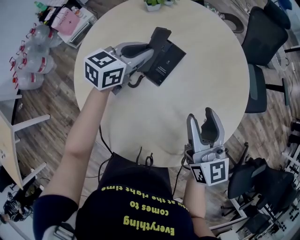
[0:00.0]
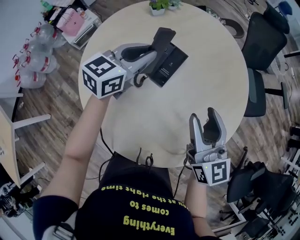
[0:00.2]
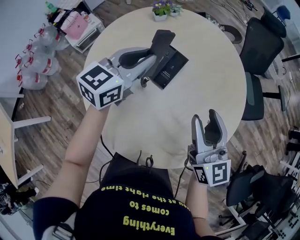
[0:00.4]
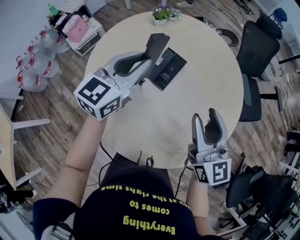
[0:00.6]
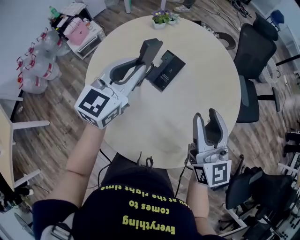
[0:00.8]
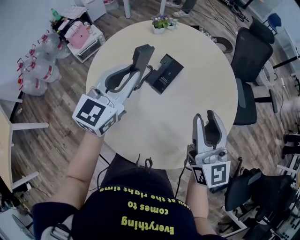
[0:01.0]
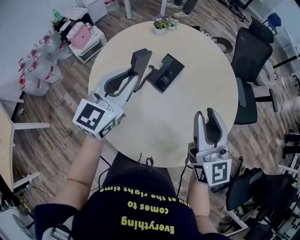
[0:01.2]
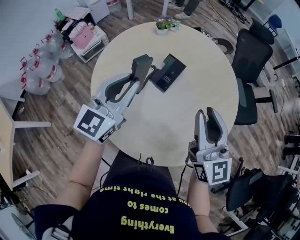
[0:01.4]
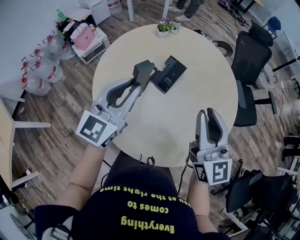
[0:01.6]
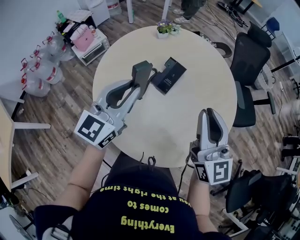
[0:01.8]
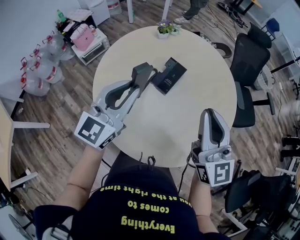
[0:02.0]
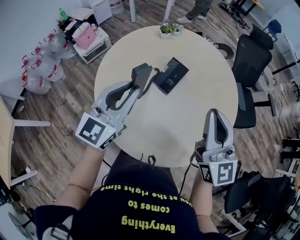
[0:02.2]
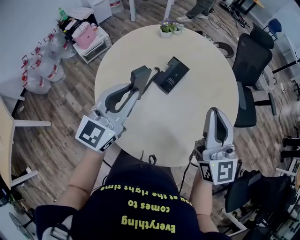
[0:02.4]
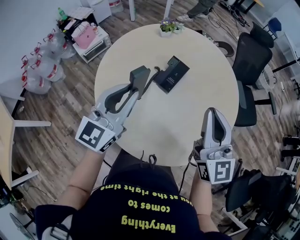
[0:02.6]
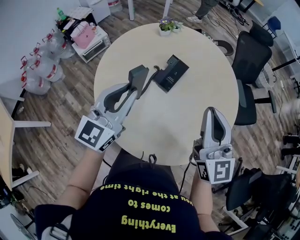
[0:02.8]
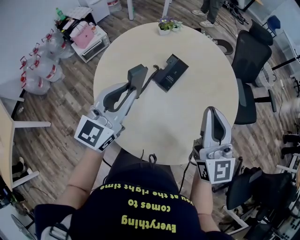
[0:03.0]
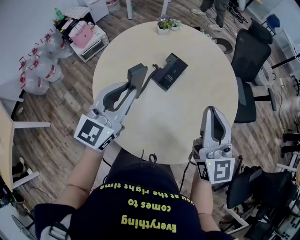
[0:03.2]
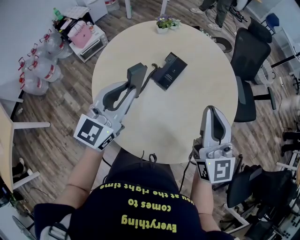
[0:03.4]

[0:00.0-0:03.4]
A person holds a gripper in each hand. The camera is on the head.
0:00.0 to 0:01.6: The right gripper travels upward and backward by about 15 cm, and closes. Meanwhile the left gripper shifts approximately 25 cm backward and upward, and rotates about 30 degrees.
0:01.6 to 0:03.4: The grippers move only a little.

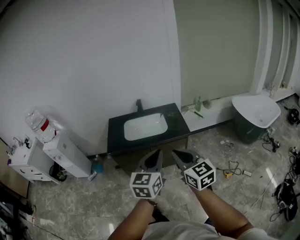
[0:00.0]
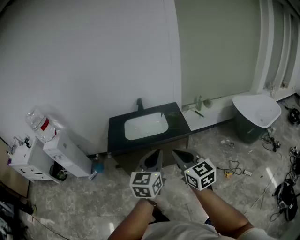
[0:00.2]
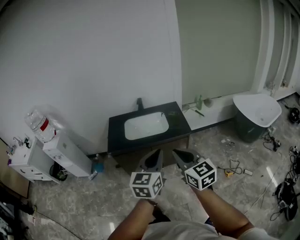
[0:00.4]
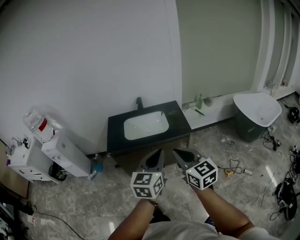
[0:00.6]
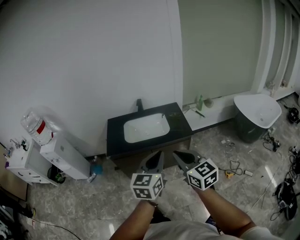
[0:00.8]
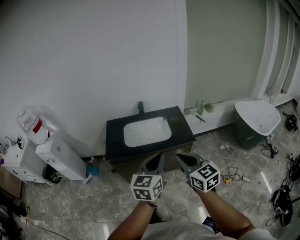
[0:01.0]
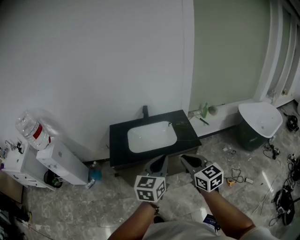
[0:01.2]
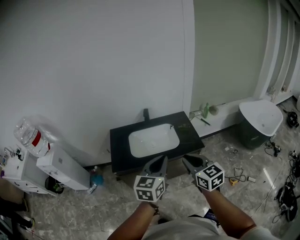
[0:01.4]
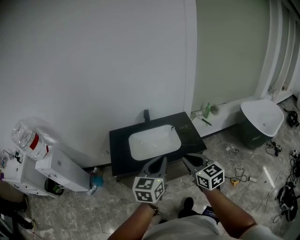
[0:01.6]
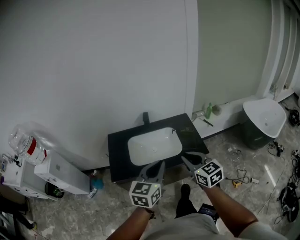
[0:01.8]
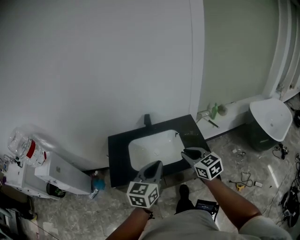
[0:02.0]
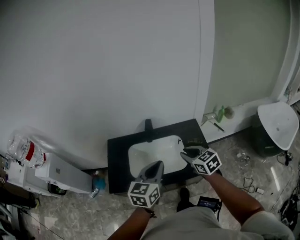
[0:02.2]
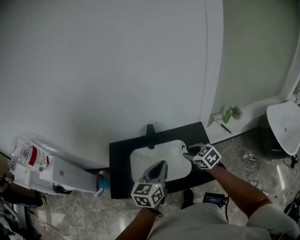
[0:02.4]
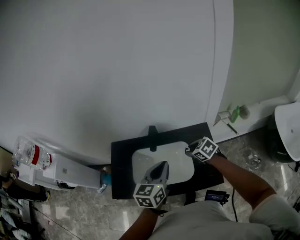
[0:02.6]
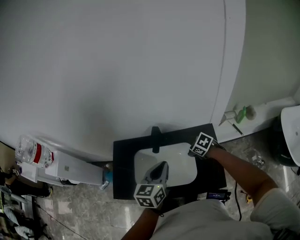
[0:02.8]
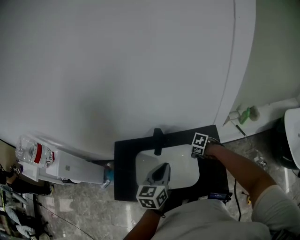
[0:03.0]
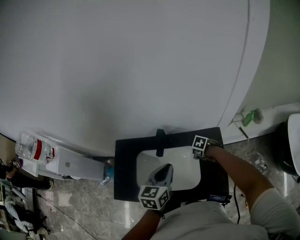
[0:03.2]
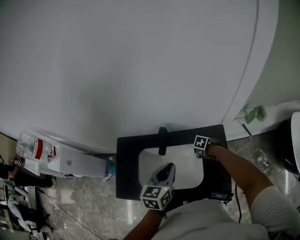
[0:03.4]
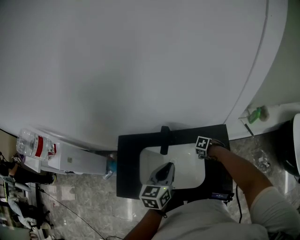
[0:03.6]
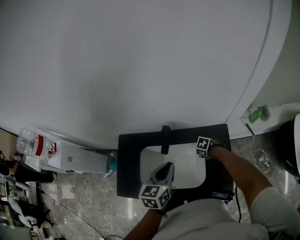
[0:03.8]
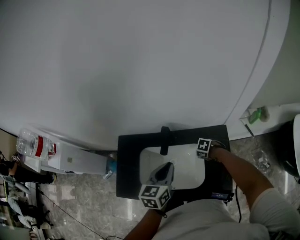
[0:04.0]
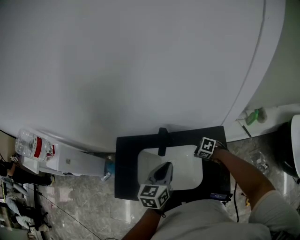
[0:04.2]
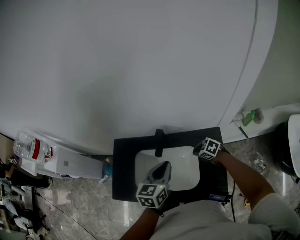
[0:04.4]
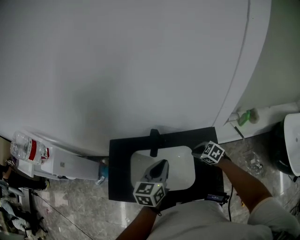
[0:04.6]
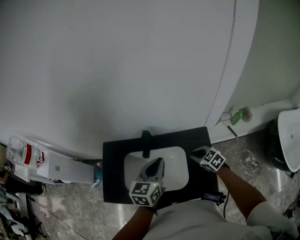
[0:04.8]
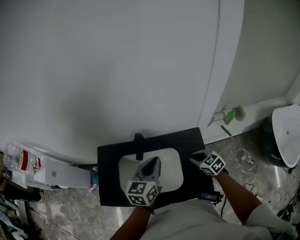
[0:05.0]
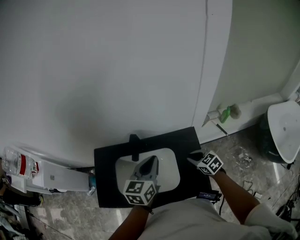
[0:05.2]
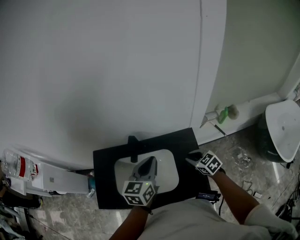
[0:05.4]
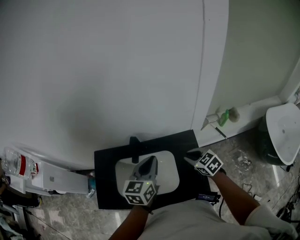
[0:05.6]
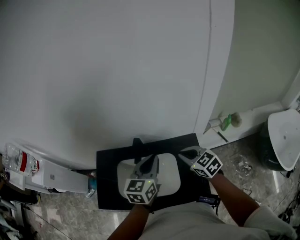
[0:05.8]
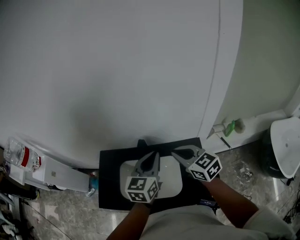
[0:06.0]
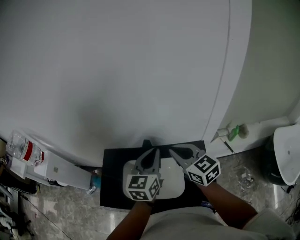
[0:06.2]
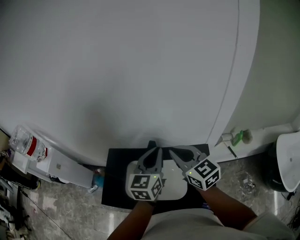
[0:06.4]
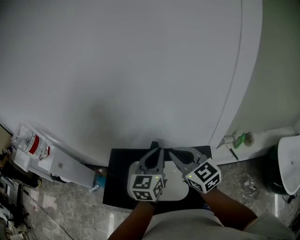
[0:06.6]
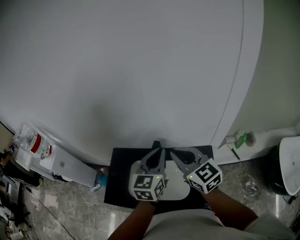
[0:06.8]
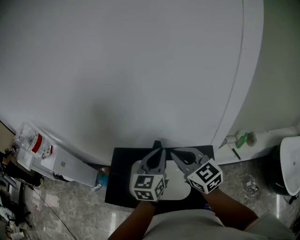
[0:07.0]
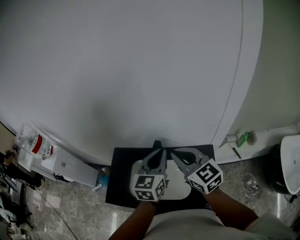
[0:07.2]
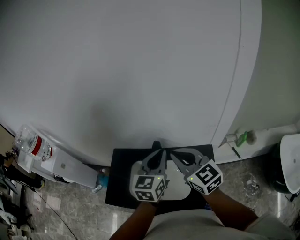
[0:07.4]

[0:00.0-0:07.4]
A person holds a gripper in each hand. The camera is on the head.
0:00.0 to 0:01.4: The right gripper heads forward, covering some 20 cm. The left gripper moves forward and to the left, roughly 25 cm.
0:01.4 to 0:03.0: Both grippers are carried about 50 cm. The right gripper points its fingers some 50 degrees further downward, and opens. The left gripper changes its angle by some 20 degrees.
0:03.0 to 0:04.4: The right gripper reaches about 10 cm downward, then returns, and closes up.
0:04.4 to 0:06.0: The right gripper shifts roughly 30 cm upward, and angles its fingers upward, by approximately 30 degrees, while the left gripper moves upward and to the right, some 10 cm.
0:06.0 to 0:07.4: The right gripper moves upward and to the left, some 10 cm. The left gripper shifts by roughly 5 cm.

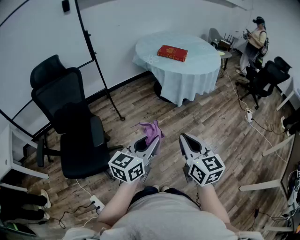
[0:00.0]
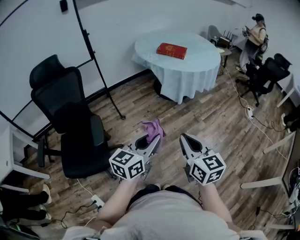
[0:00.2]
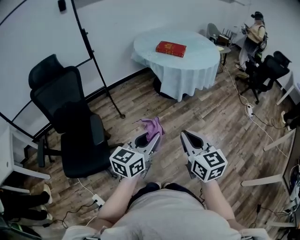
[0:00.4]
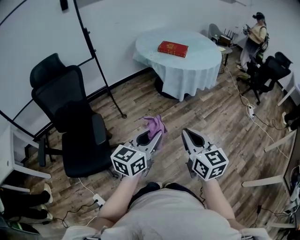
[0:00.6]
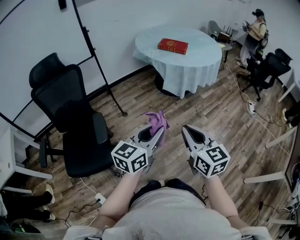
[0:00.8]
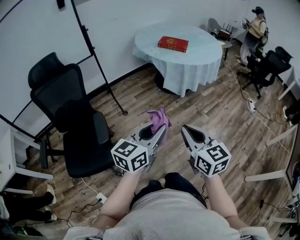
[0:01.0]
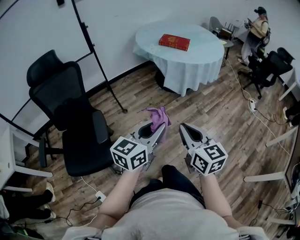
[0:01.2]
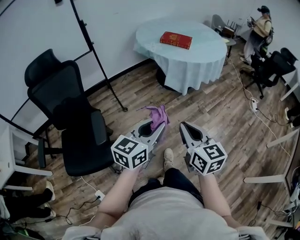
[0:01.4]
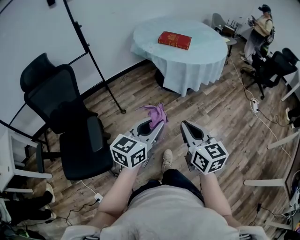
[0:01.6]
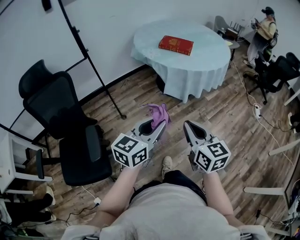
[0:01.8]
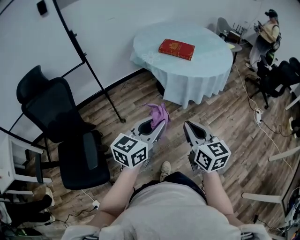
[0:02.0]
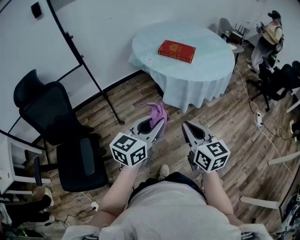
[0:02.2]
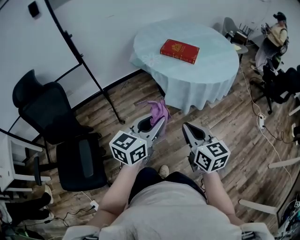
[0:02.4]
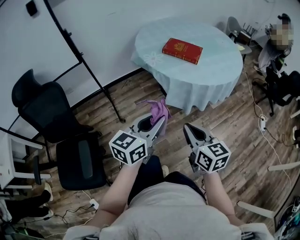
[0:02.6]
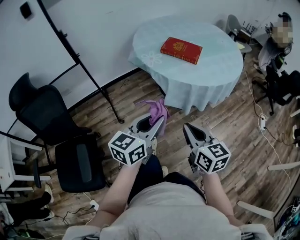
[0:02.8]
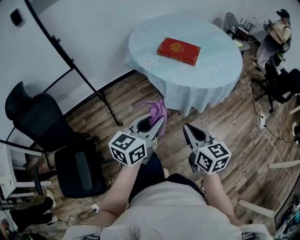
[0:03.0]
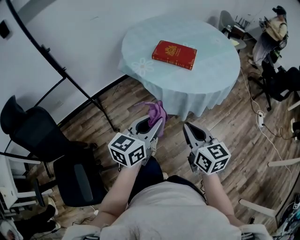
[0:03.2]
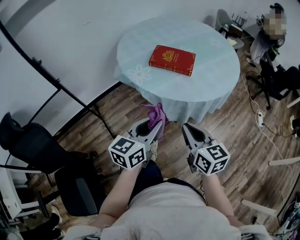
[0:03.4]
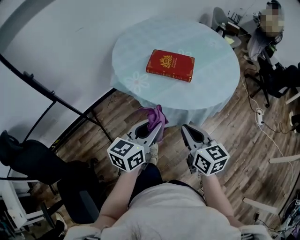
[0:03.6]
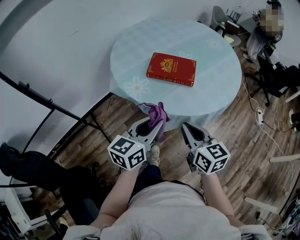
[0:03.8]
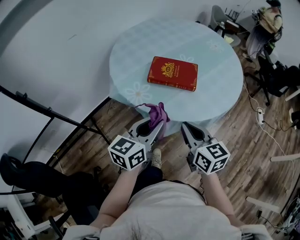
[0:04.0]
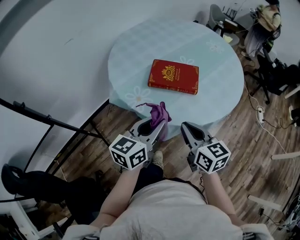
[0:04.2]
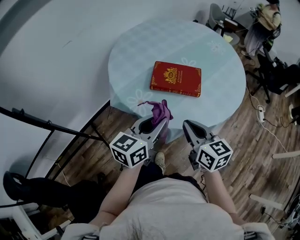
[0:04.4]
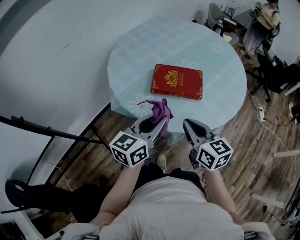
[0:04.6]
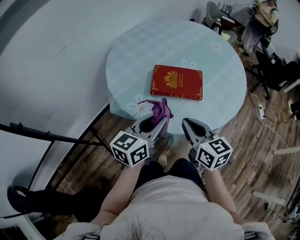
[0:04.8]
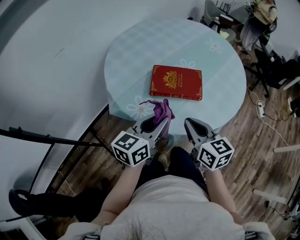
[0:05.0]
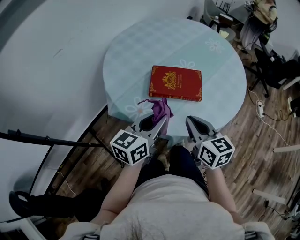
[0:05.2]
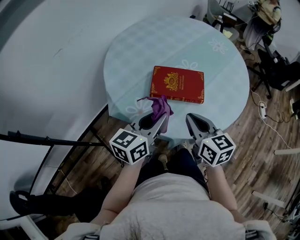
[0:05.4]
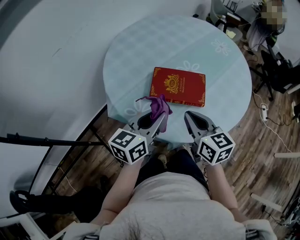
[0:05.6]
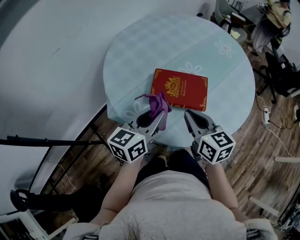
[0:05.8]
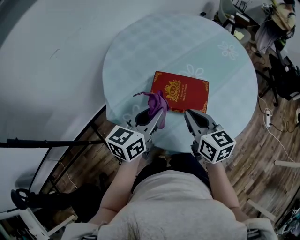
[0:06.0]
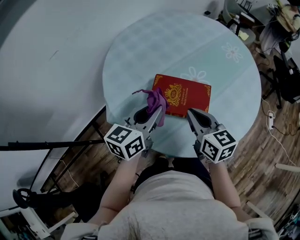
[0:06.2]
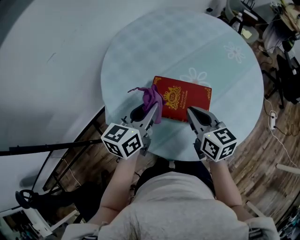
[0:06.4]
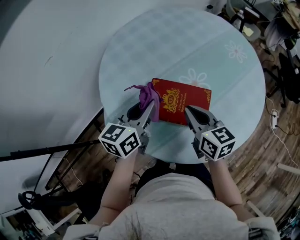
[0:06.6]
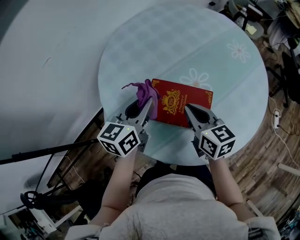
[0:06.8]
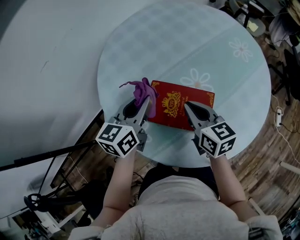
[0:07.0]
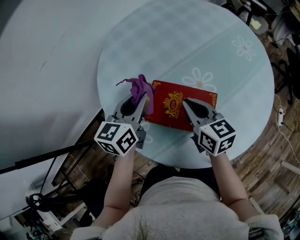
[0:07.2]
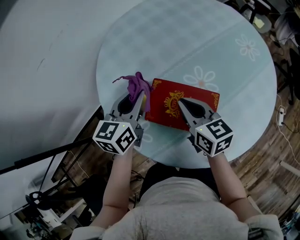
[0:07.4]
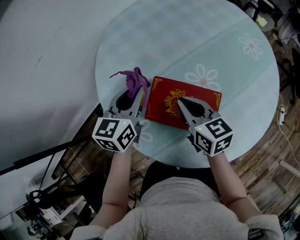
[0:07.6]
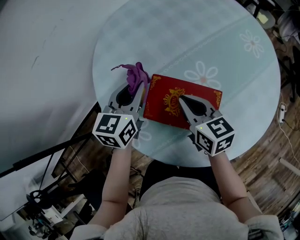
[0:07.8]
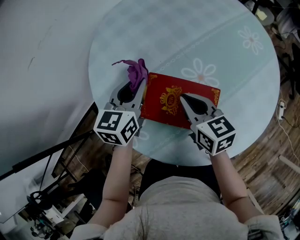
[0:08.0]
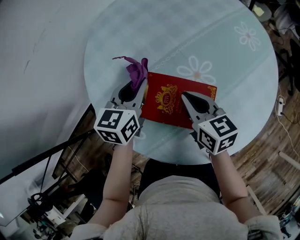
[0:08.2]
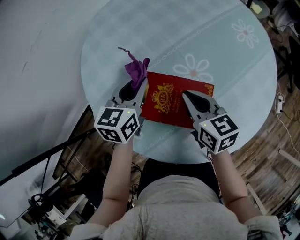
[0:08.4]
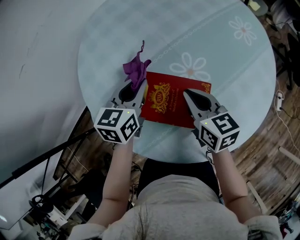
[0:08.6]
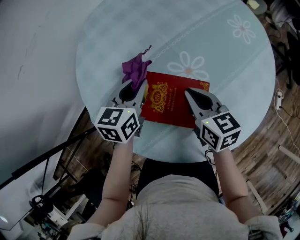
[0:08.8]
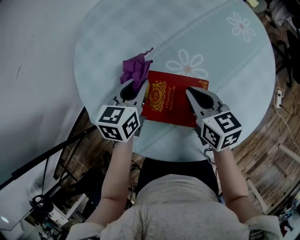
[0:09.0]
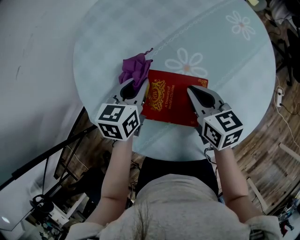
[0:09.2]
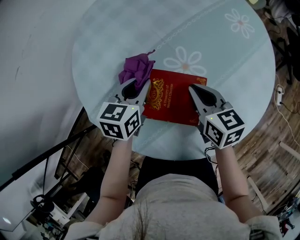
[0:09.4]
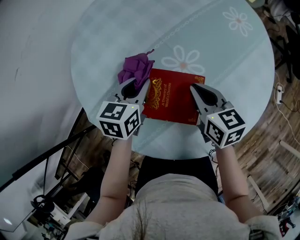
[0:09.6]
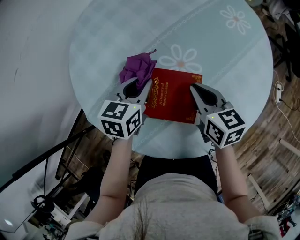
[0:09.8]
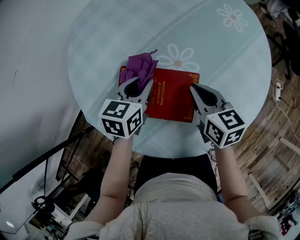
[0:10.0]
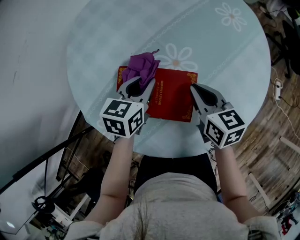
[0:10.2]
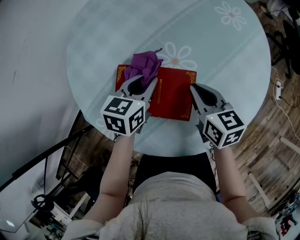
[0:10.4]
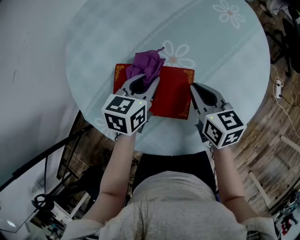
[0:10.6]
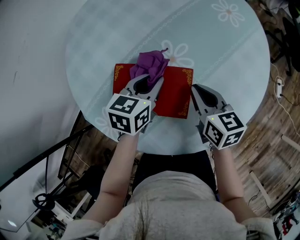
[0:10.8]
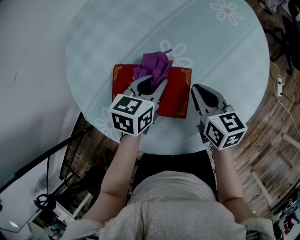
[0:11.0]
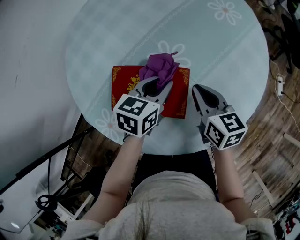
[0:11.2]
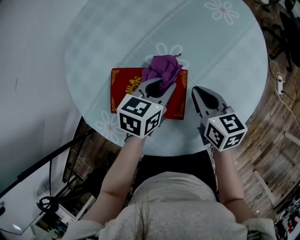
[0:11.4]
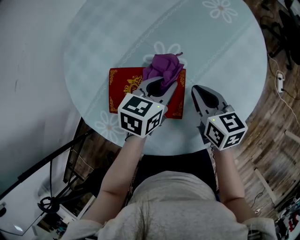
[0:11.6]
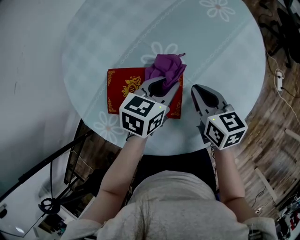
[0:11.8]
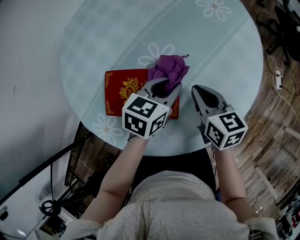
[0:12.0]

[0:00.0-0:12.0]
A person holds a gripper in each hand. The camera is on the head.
0:00.0 to 0:01.6: The two grippers go about 10 cm forward.
0:01.6 to 0:03.0: Both grippers move forward, some 30 cm.
0:03.0 to 0:04.4: The grippers both shift forward by roughly 30 cm.
0:04.4 to 0:06.0: The grippers both shift forward by about 15 cm.
0:06.0 to 0:07.6: The two grippers go about 15 cm forward. The left gripper swivels about 20 degrees.
0:07.6 to 0:09.0: The left gripper goes roughly 10 cm to the right and downward. Meanwhile the right gripper shifts about 10 cm to the right.
0:09.0 to 0:10.4: Both grippers move to the right, roughly 5 cm.
0:10.4 to 0:12.0: The left gripper shifts approximately 15 cm to the right, while the right gripper travels to the right by roughly 5 cm.

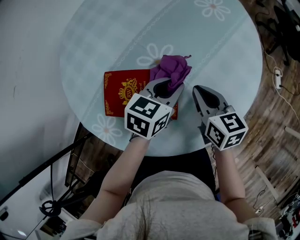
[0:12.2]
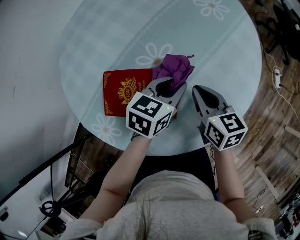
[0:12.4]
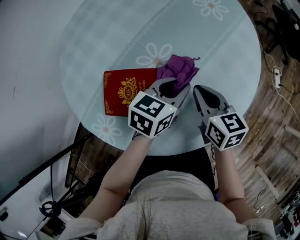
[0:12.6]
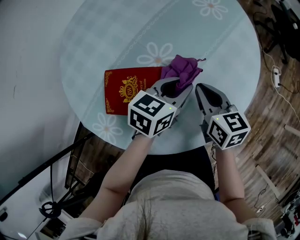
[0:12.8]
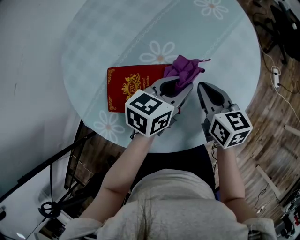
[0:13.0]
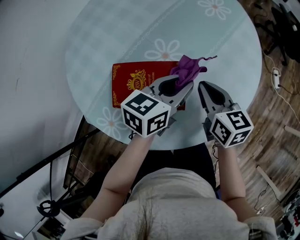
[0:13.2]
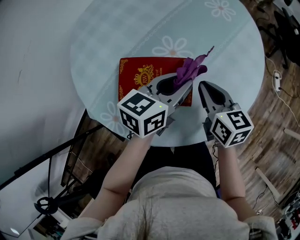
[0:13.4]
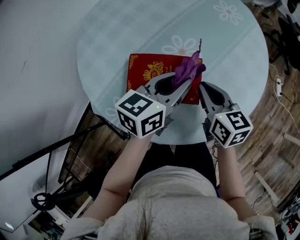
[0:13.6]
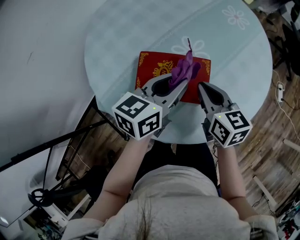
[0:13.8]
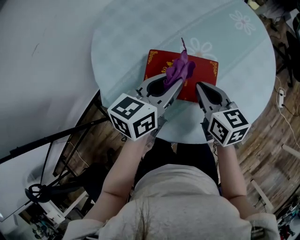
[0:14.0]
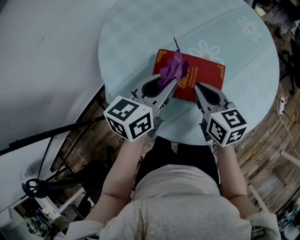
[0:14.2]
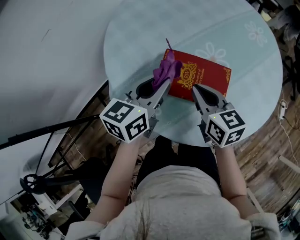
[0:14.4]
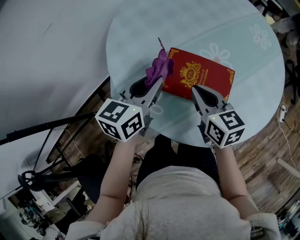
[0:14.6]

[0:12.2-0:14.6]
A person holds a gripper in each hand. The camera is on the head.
0:12.2 to 0:13.4: The left gripper heads upward, covering some 5 cm; the right gripper shifts by approximately 5 cm.
0:13.4 to 0:14.6: The two grippers go approximately 20 cm to the left. The left gripper swivels about 30 degrees.
